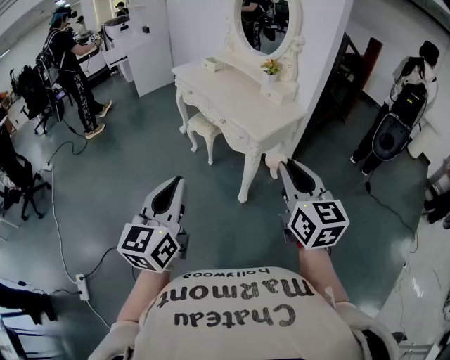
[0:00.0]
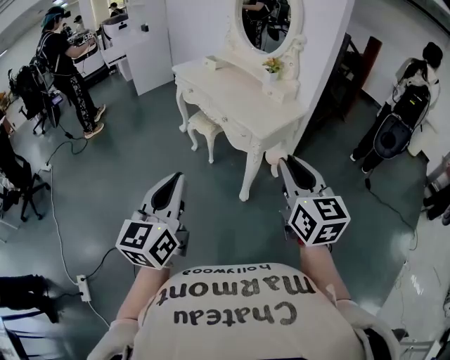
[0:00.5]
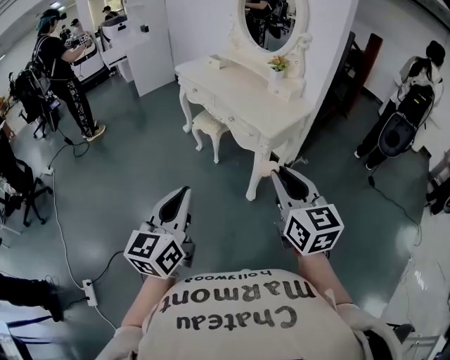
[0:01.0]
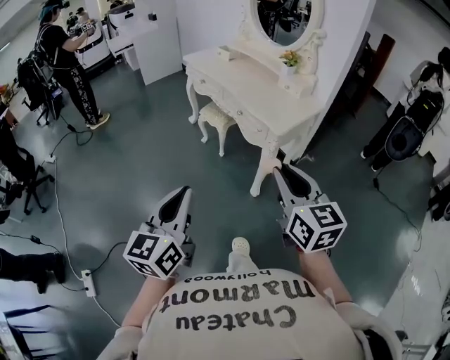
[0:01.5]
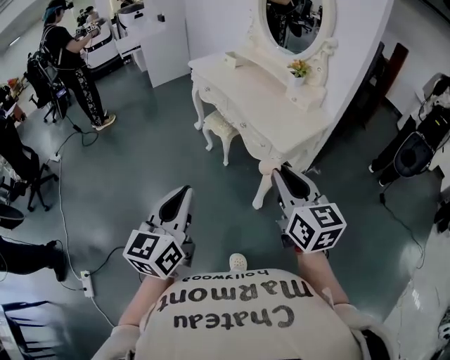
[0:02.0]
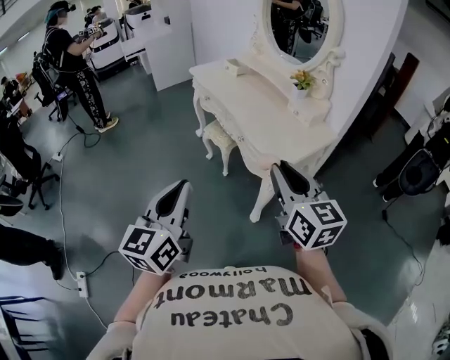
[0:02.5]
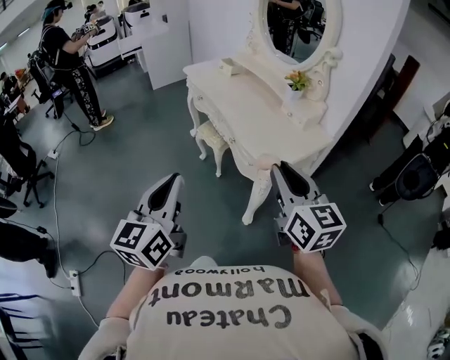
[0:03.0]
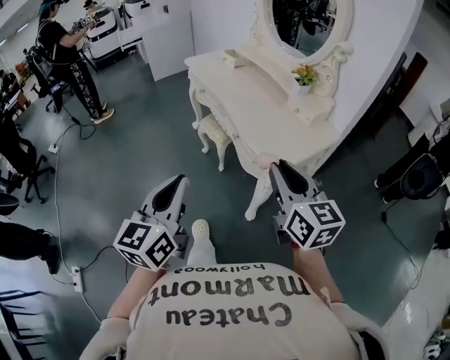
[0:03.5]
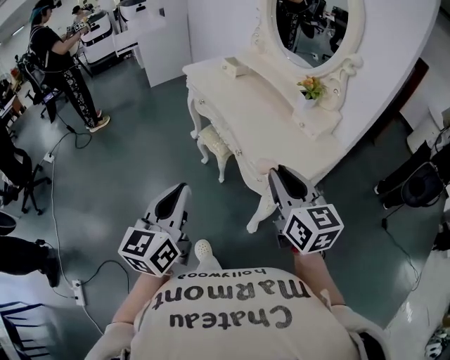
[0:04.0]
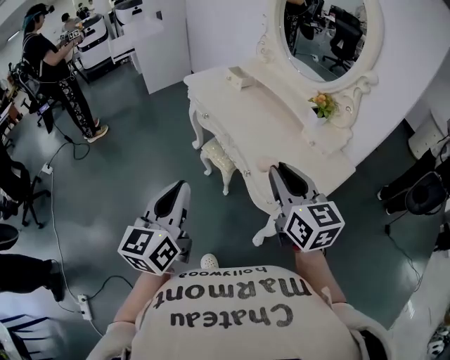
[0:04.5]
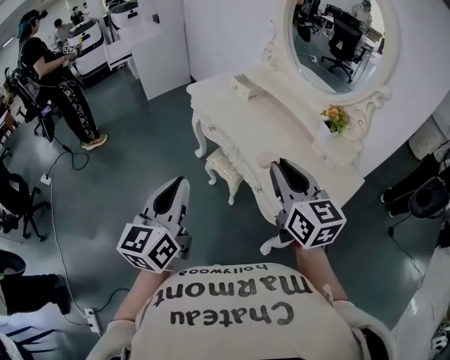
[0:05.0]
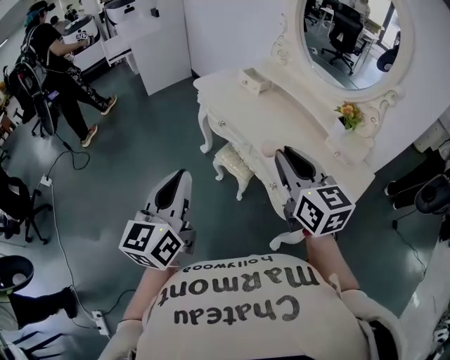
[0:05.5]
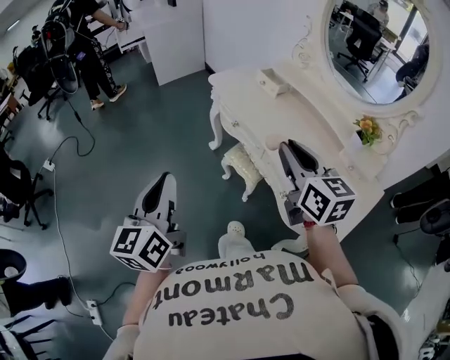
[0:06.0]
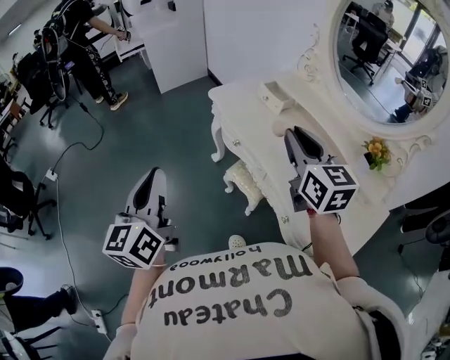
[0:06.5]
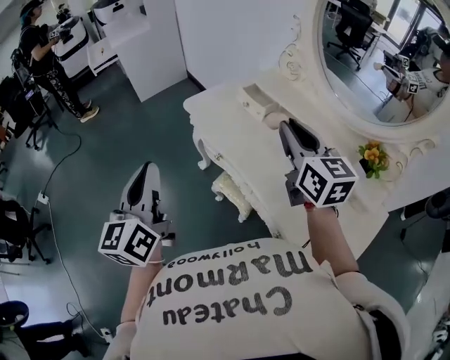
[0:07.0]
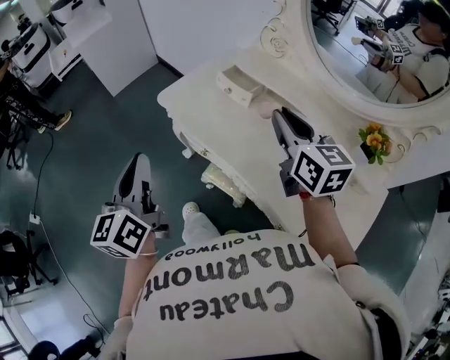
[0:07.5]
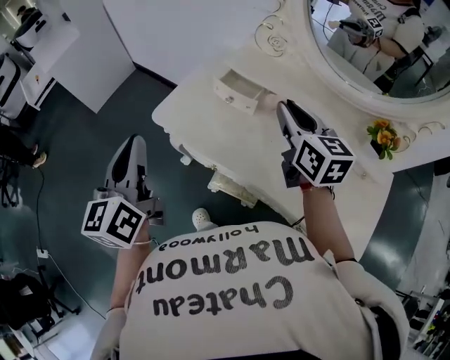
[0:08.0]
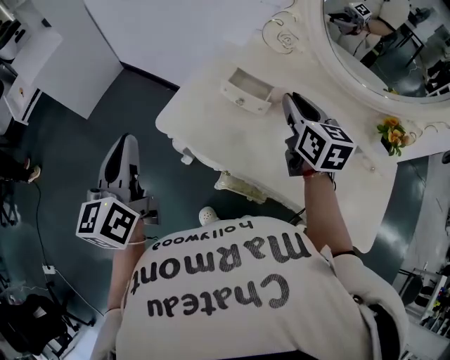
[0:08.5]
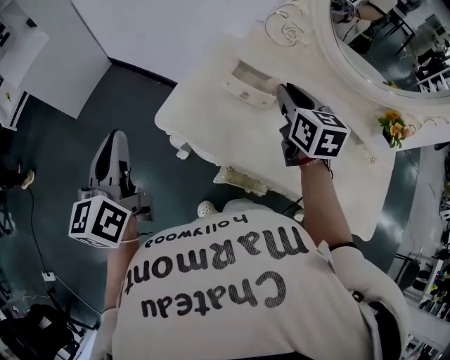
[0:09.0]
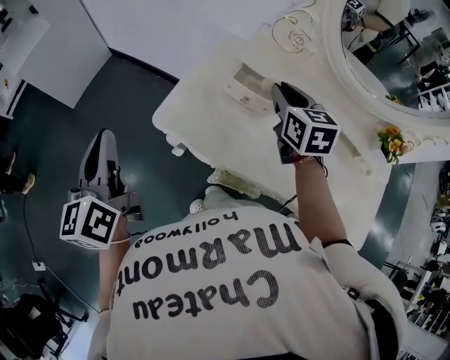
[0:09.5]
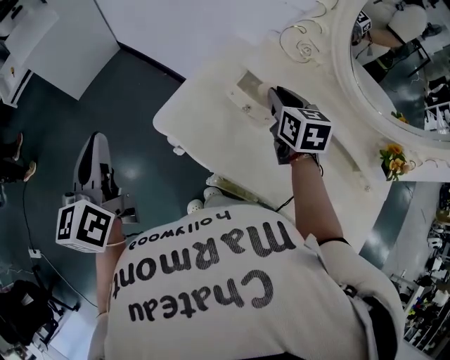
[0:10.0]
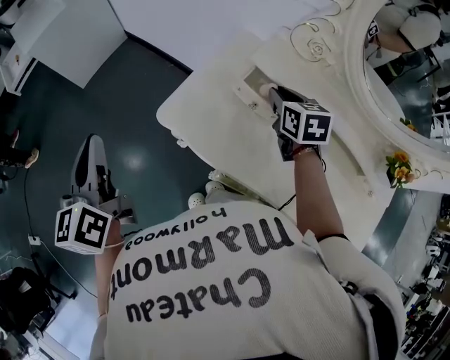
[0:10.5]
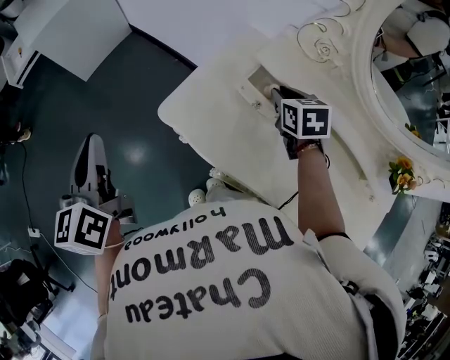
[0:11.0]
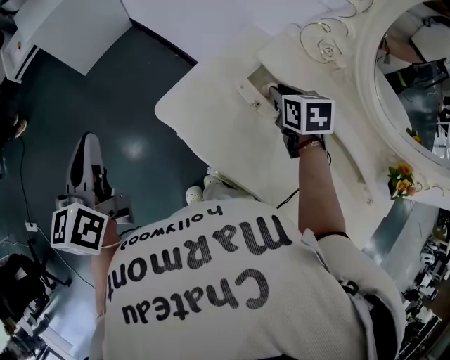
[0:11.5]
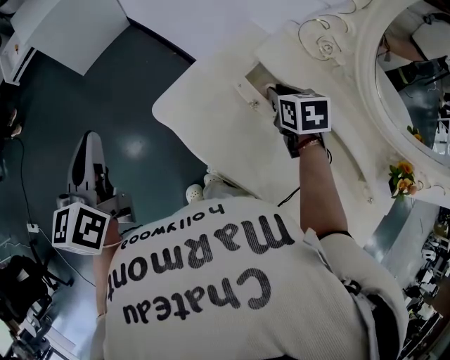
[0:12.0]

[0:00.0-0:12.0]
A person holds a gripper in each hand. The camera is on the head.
0:00.0 to 0:02.0: The right gripper is displaced forward and to the left by approximately 15 cm. The left gripper heads forward, covering approximately 10 cm.
0:02.0 to 0:04.0: The two grippers go approximately 20 cm forward.
0:04.0 to 0:06.0: The two grippers go approximately 35 cm forward and to the left.
0:06.0 to 0:08.0: The grippers both shift forward by about 40 cm. The right gripper turns by about 30 degrees.
0:08.0 to 0:10.0: The right gripper heads forward, downward and to the left, covering some 20 cm; the left gripper goes about 15 cm to the left and forward.
0:10.0 to 0:12.0: The right gripper heads downward, covering roughly 5 cm, and rotates some 20 degrees.

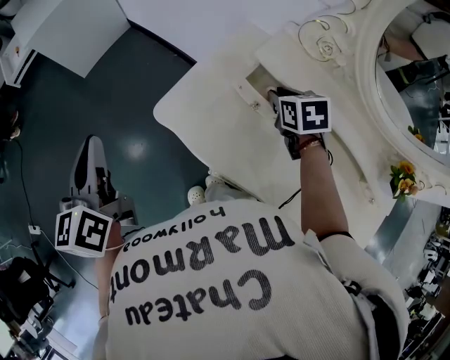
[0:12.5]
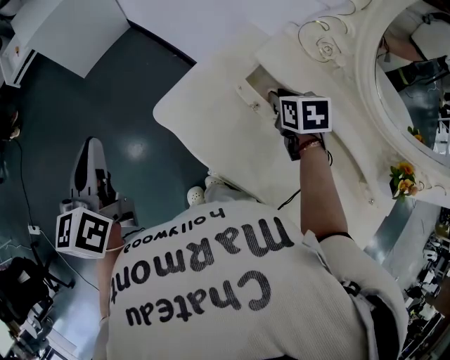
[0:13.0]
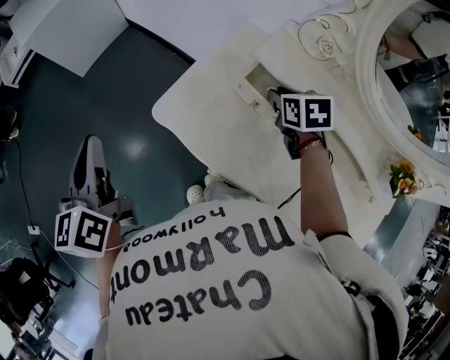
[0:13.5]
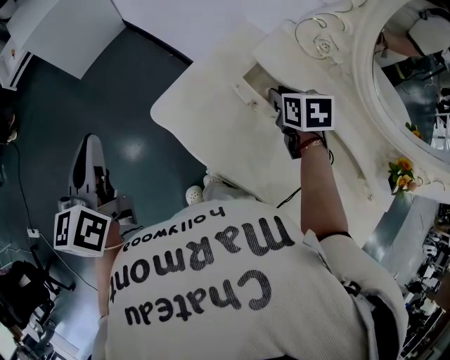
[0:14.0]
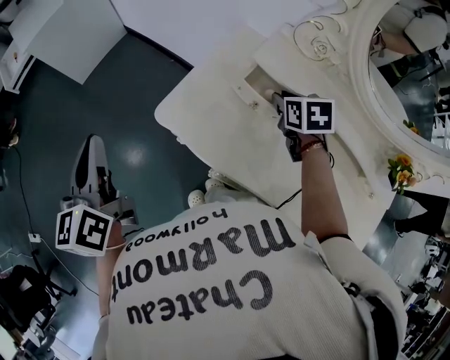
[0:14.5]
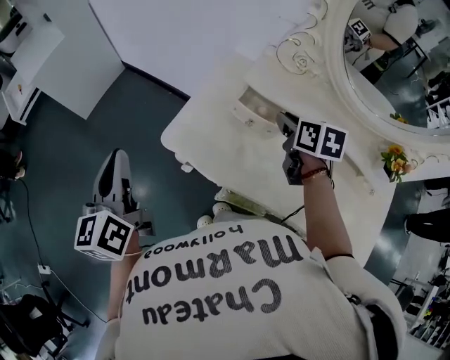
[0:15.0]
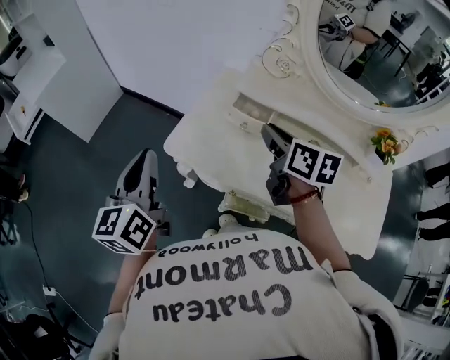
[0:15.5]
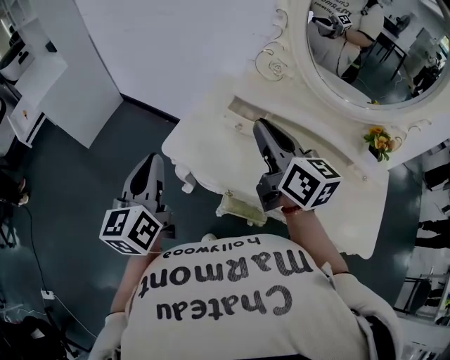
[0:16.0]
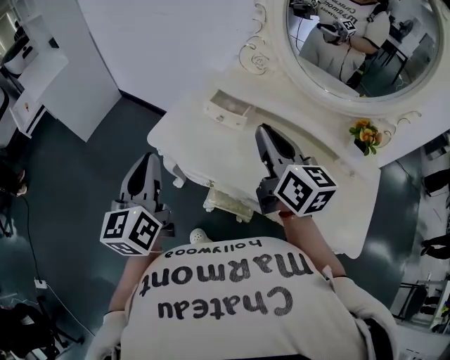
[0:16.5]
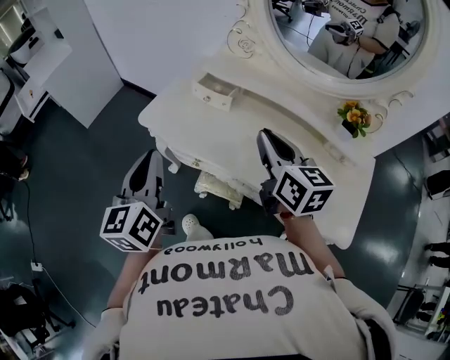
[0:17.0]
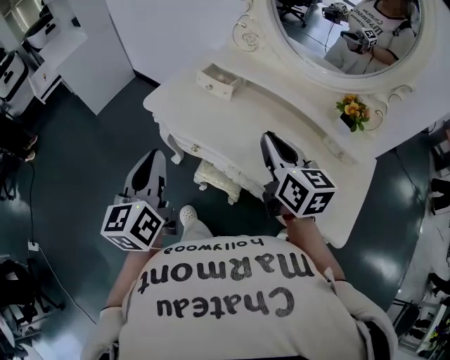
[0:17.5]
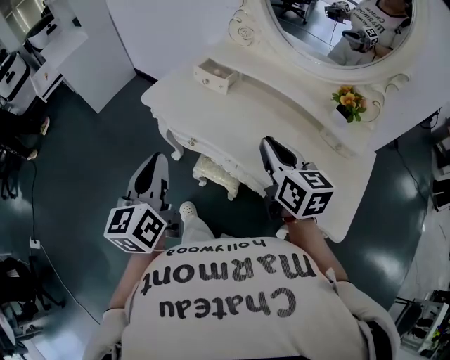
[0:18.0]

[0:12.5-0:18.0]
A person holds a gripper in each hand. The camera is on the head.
0:12.5 to 0:14.5: There are only small adjustments of the grippers.
0:14.5 to 0:16.0: The left gripper shifts roughly 10 cm to the right and backward, and turns by roughly 20 degrees; the right gripper travels upward and backward by approximately 25 cm, and tips its fingers upward by roughly 50 degrees.
0:16.0 to 0:18.0: The two grippers go some 25 cm backward and to the right.

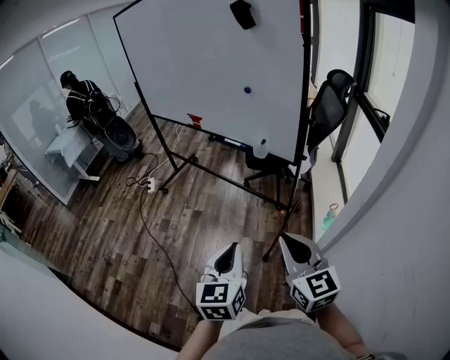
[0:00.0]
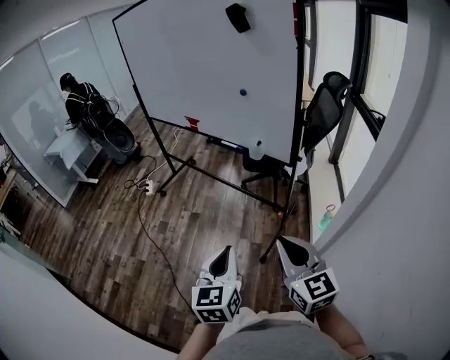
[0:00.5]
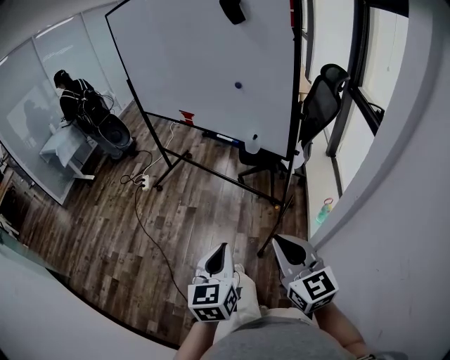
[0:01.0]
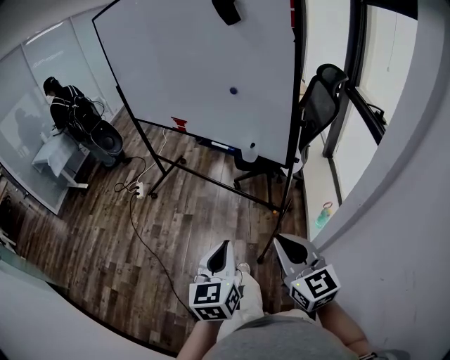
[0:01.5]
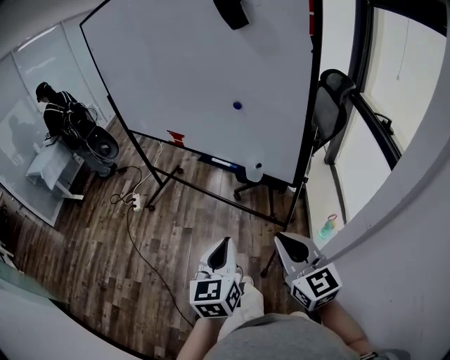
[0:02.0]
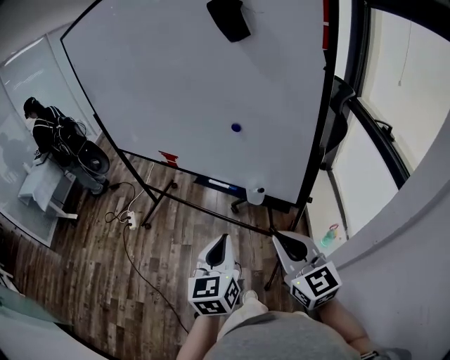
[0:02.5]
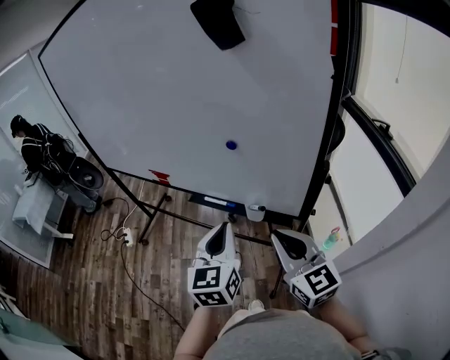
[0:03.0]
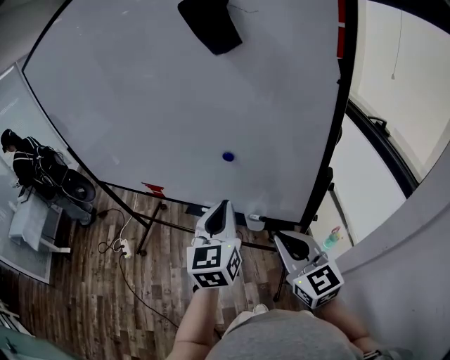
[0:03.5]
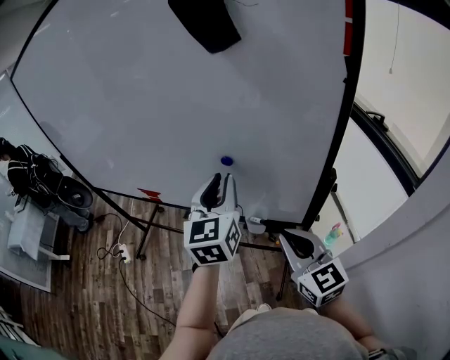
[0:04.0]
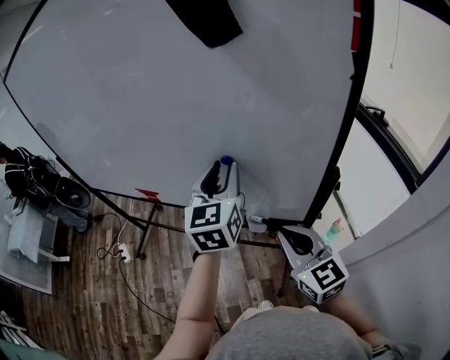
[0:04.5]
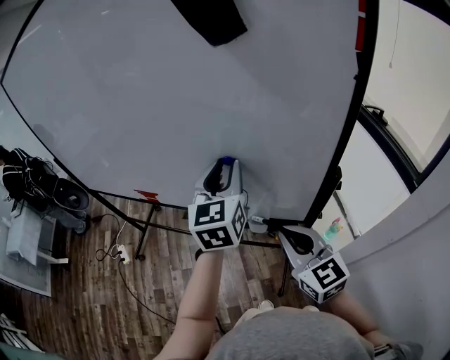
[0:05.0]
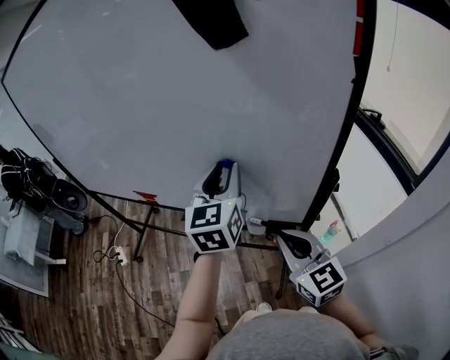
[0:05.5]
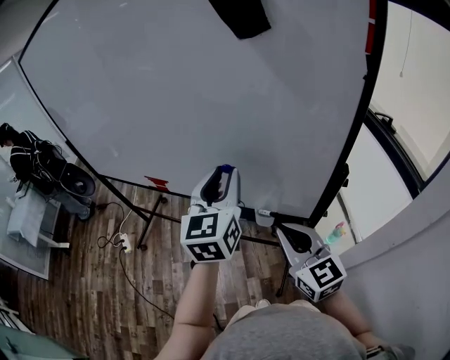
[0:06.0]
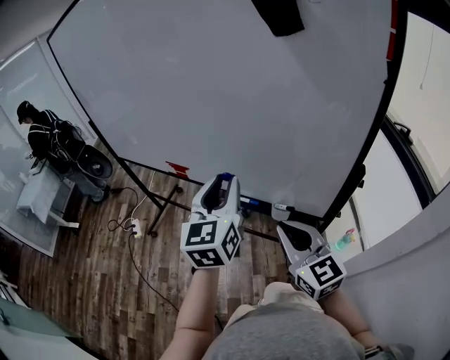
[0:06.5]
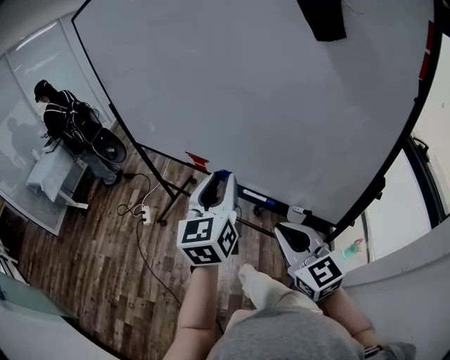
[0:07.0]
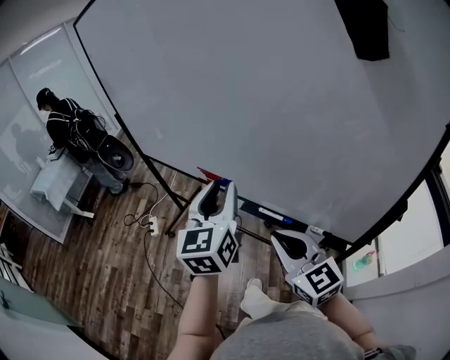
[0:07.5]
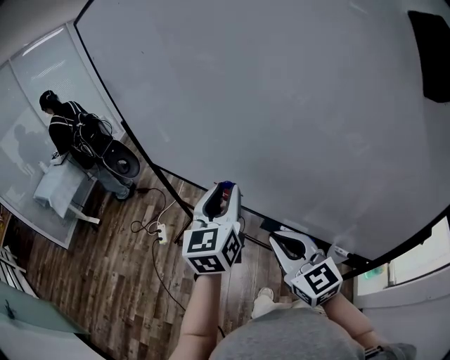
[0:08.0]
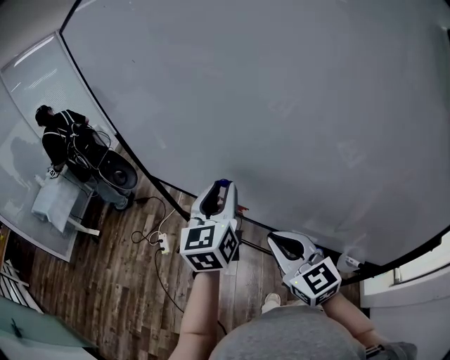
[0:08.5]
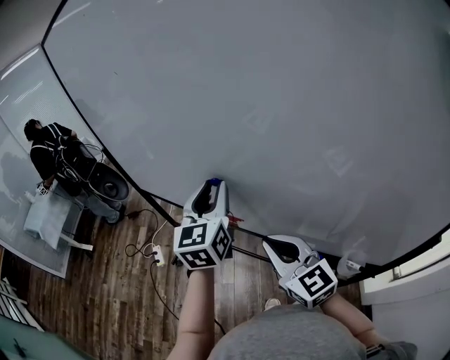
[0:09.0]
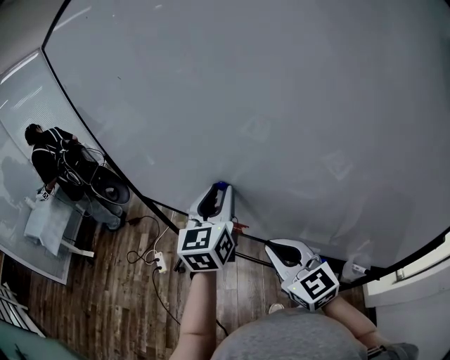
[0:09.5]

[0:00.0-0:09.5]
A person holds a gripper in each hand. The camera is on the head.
0:00.0 to 0:02.0: Both grippers travel together forward, approximately 15 cm.
0:02.0 to 0:04.0: The left gripper shifts some 35 cm forward, swivels about 20 degrees, and opens. The right gripper shifts about 25 cm forward.
0:04.0 to 0:05.5: The grippers move only a little.
0:05.5 to 0:07.5: Both grippers move to the left, some 20 cm. The right gripper swivels approximately 20 degrees.
0:07.5 to 0:09.5: The right gripper moves forward and to the left, roughly 25 cm. The left gripper heads forward, covering approximately 25 cm.
